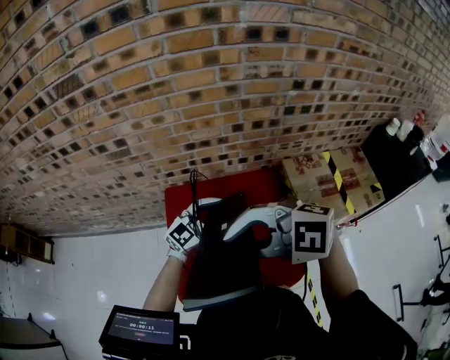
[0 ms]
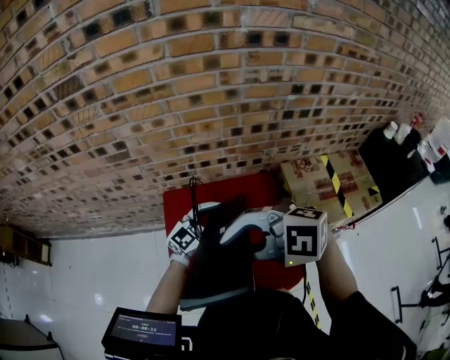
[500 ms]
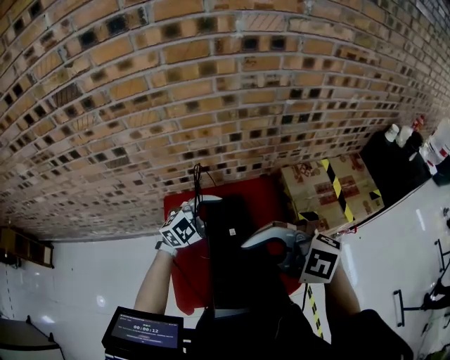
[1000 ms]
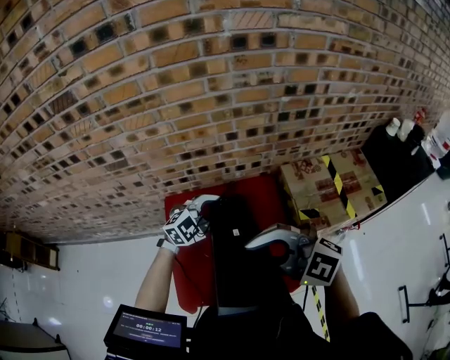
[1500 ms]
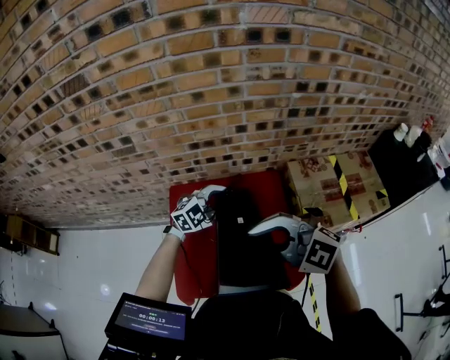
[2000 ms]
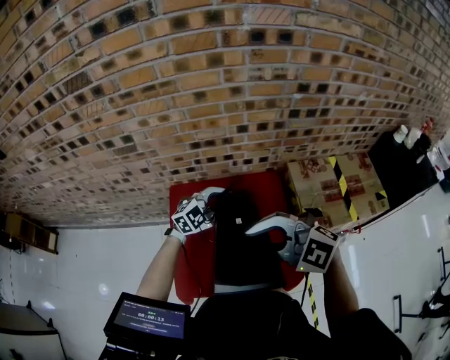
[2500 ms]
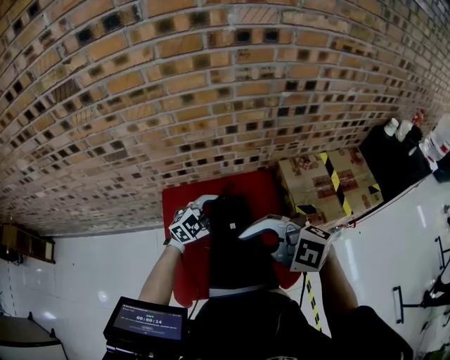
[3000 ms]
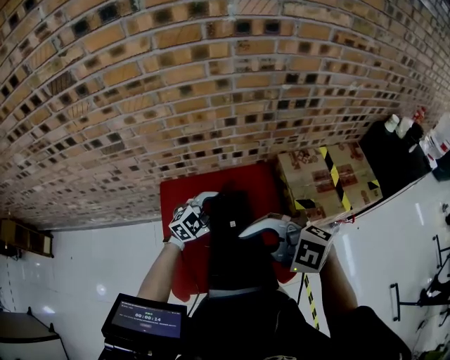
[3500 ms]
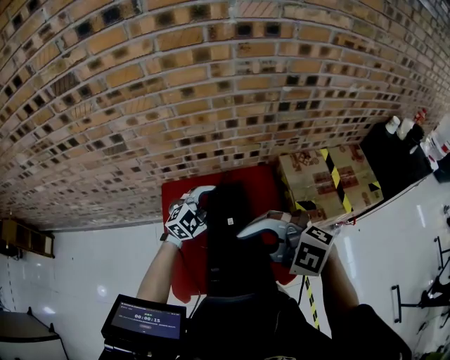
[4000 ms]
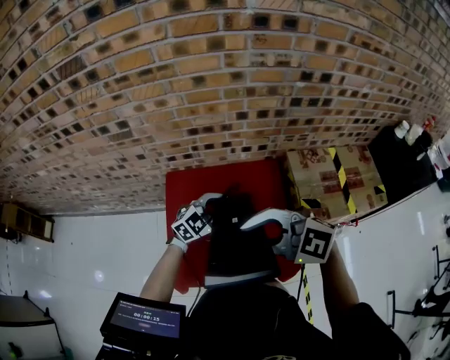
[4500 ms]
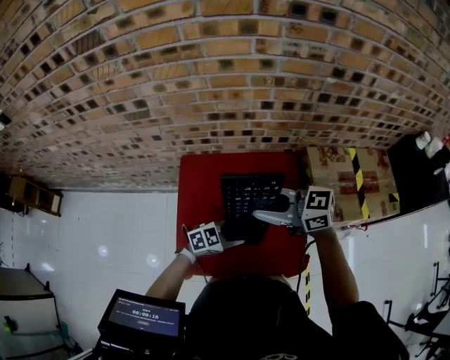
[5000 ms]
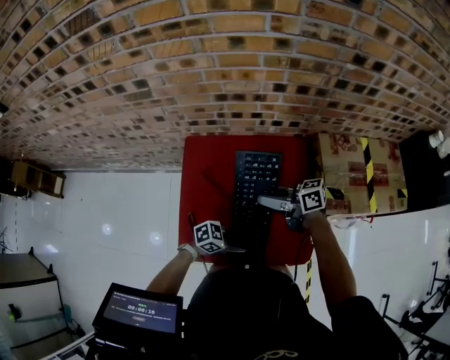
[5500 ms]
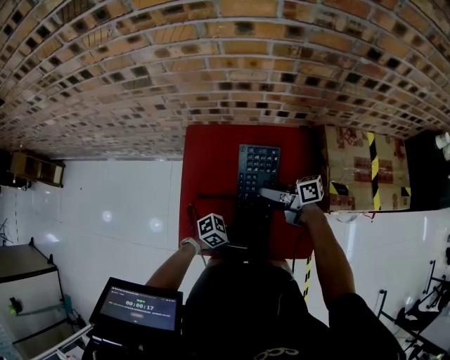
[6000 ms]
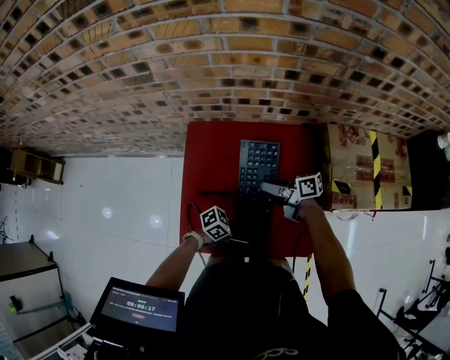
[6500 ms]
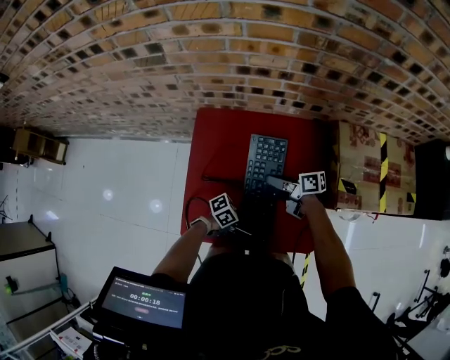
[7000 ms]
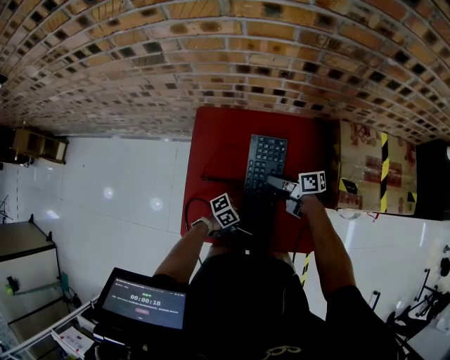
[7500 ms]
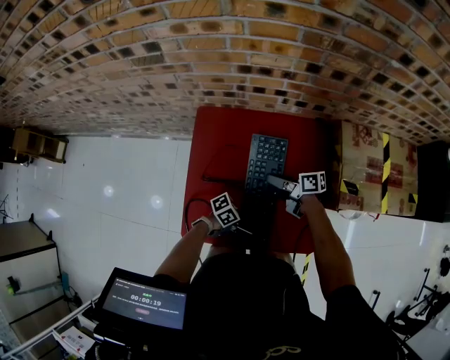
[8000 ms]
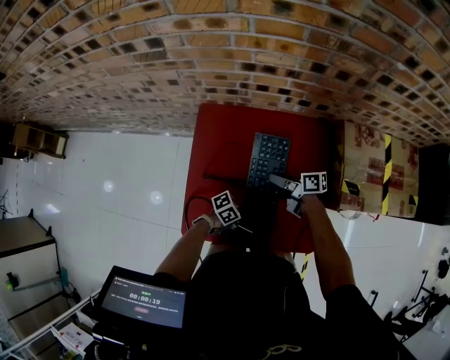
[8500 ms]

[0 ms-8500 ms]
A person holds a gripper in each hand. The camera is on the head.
0 ms to 2000 ms: The left gripper shifts by roughly 5 cm, and turns by approximately 30 degrees; the right gripper changes place by about 10 cm.
2000 ms to 4000 ms: There are only small adjustments of the grippers.
4000 ms to 6500 ms: The left gripper changes place by approximately 35 cm, and swivels about 80 degrees. Meanwhile the right gripper is displaced downward by about 30 cm, and rotates around the line of its fingers by approximately 100 degrees, clockwise from behind.
6500 ms to 8500 ms: The right gripper is displaced downward by some 5 cm.

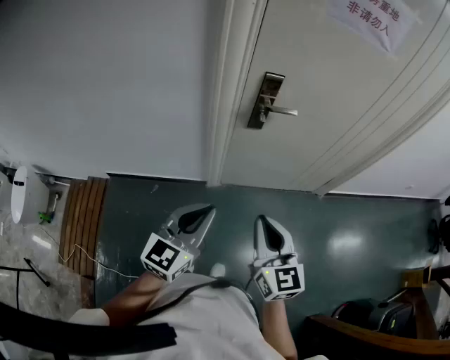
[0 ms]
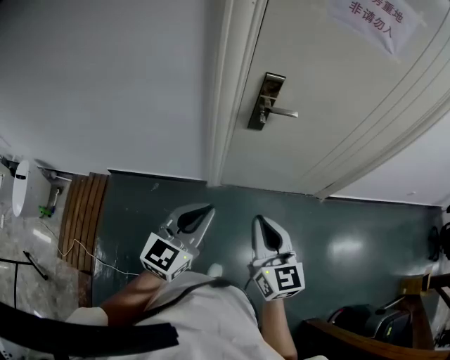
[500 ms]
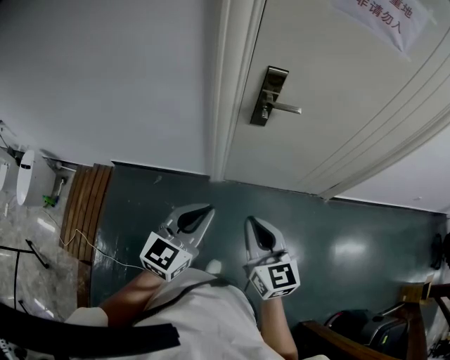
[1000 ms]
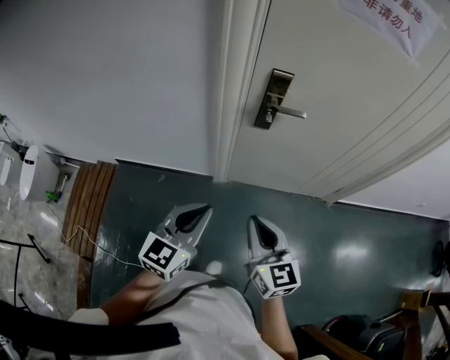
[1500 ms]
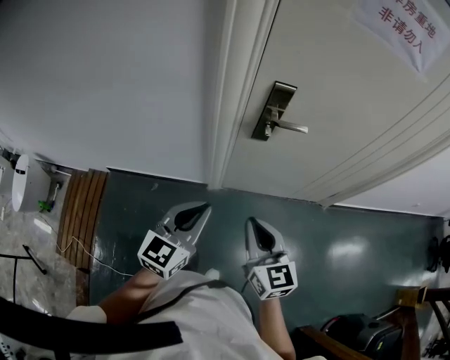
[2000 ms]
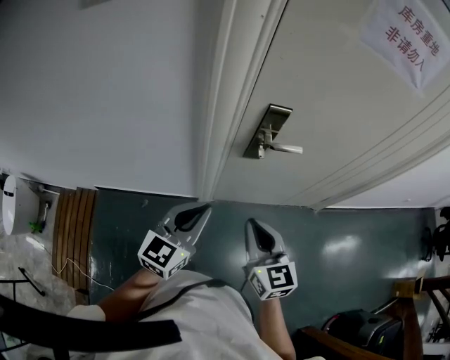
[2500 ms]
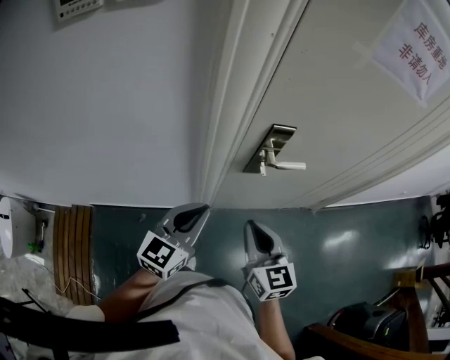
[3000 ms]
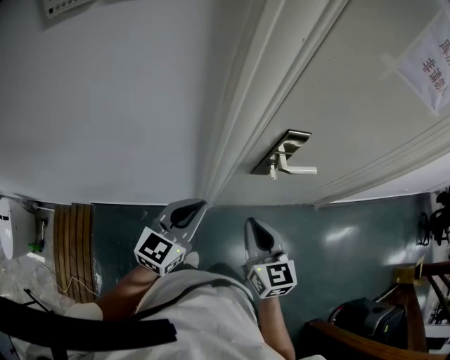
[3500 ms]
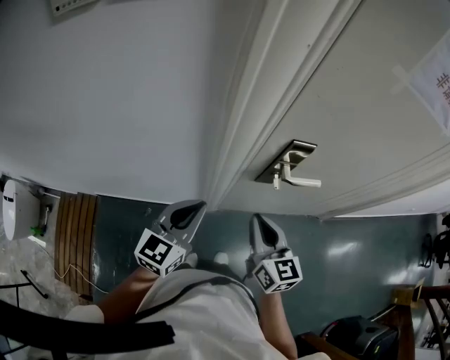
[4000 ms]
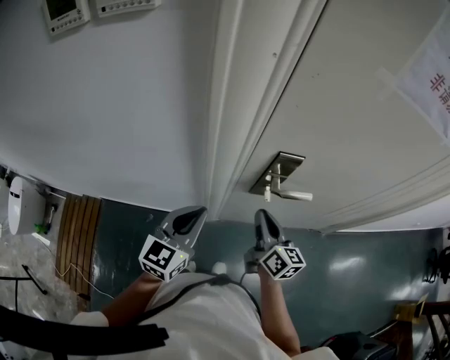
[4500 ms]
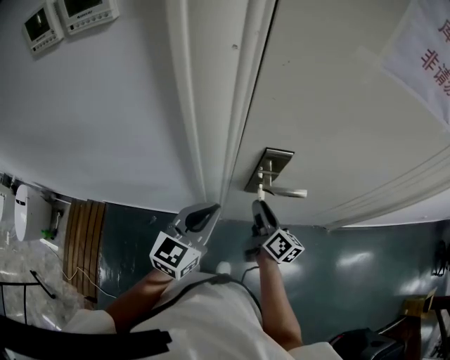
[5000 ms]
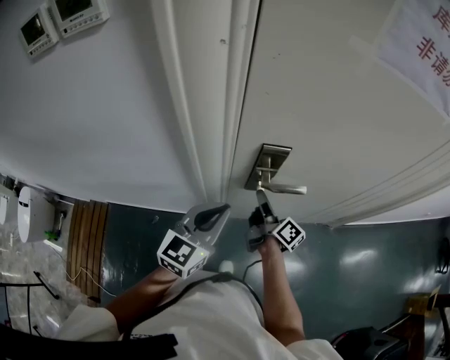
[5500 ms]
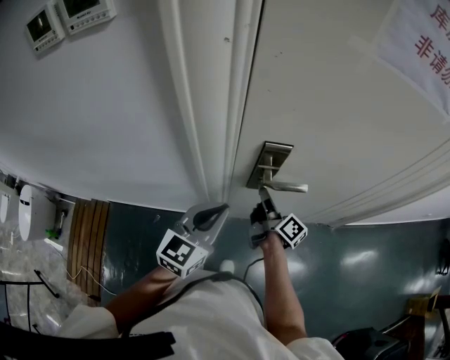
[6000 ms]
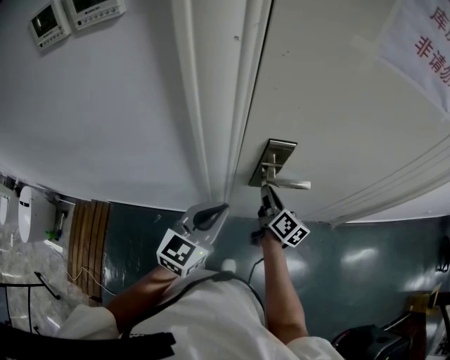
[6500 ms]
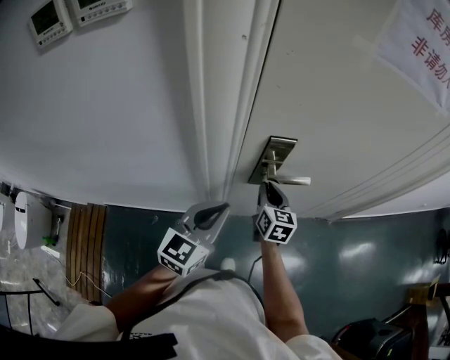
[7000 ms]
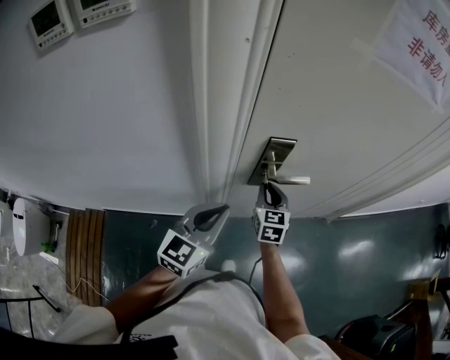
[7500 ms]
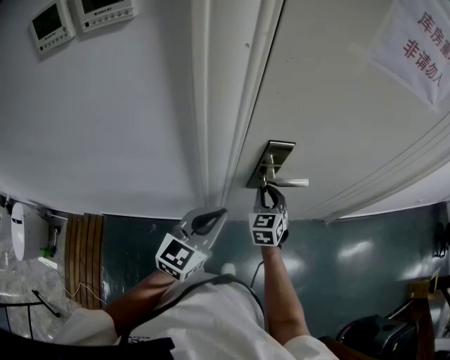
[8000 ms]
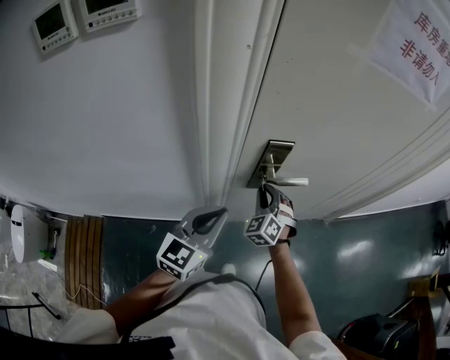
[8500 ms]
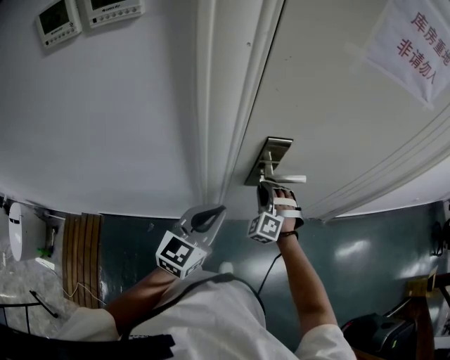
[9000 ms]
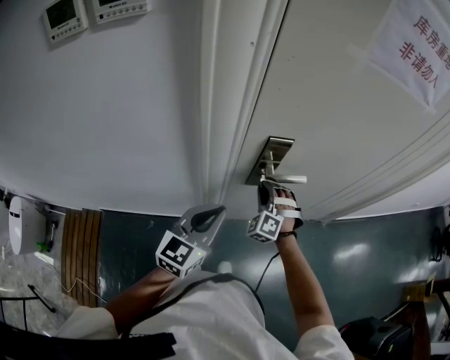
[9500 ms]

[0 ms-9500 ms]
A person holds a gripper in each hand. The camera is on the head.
0 ms to 2000 ms: Both grippers move forward, approximately 10 cm.
2000 ms to 4000 ms: The right gripper travels forward by roughly 20 cm, while the left gripper is displaced forward and to the left by about 20 cm.
4000 ms to 5500 ms: The left gripper heads to the right, covering about 15 cm; the right gripper moves forward, downward and to the right, roughly 20 cm, rolls clockwise, seen from behind, by approximately 60 degrees, and opens.
5500 ms to 7500 ms: The right gripper rotates around the line of its fingers by roughly 70 degrees, counterclockwise from behind, and closes up.
7500 ms to 9500 ms: The right gripper rotates around the line of its fingers by roughly 70 degrees, counterclockwise from behind.

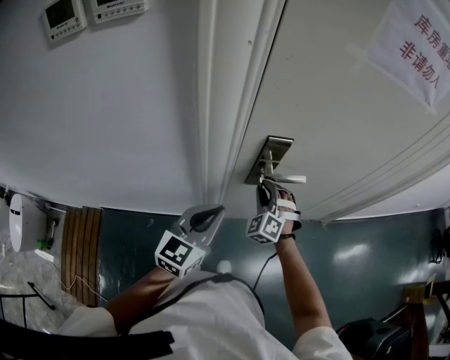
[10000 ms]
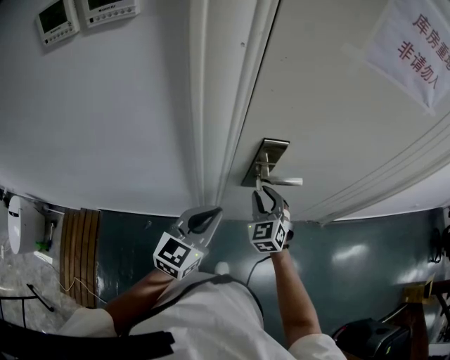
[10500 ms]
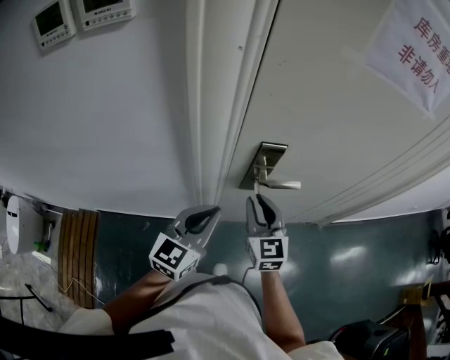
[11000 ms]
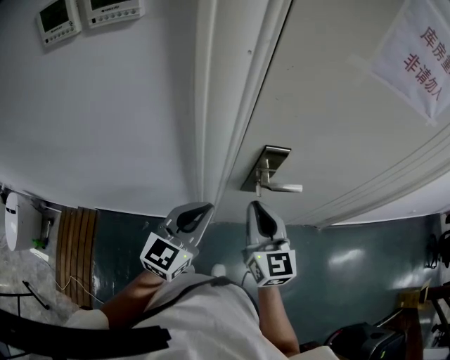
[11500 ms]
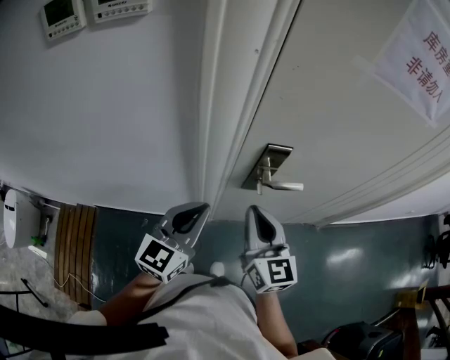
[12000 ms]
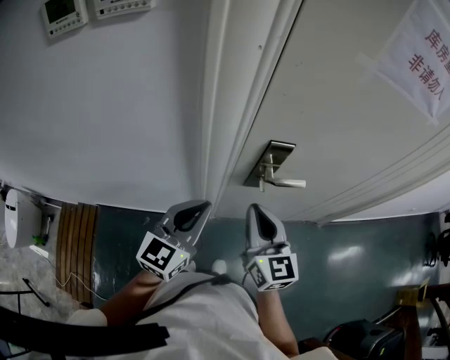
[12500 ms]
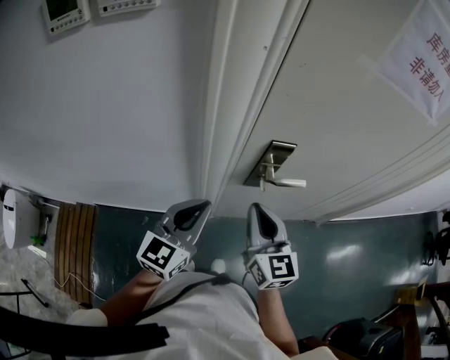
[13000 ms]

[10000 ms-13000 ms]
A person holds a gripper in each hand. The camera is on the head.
10000 ms to 11500 ms: The right gripper moves upward and backward, some 15 cm, and twists about 60 degrees clockwise, seen from behind.
11500 ms to 13000 ms: The grippers stay close to where they were, moving slightly.

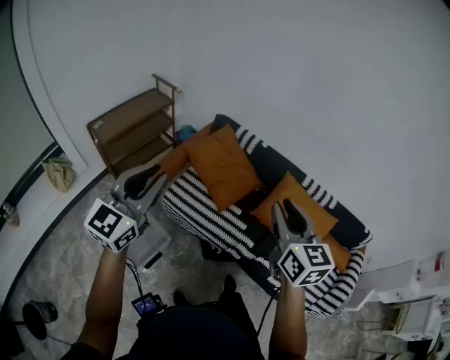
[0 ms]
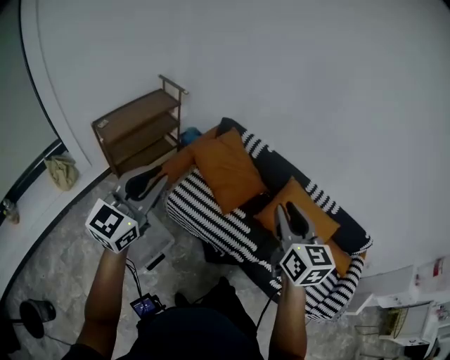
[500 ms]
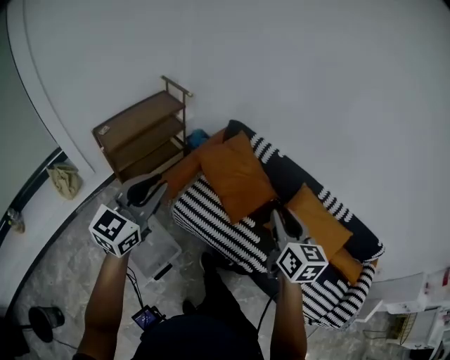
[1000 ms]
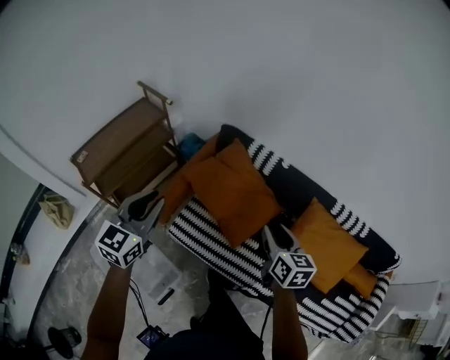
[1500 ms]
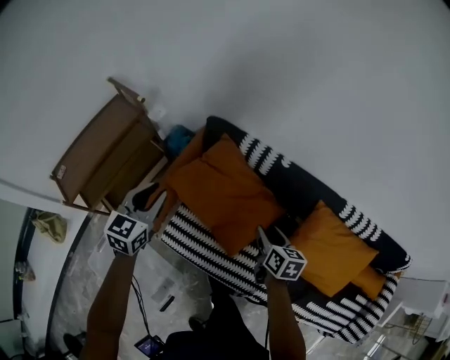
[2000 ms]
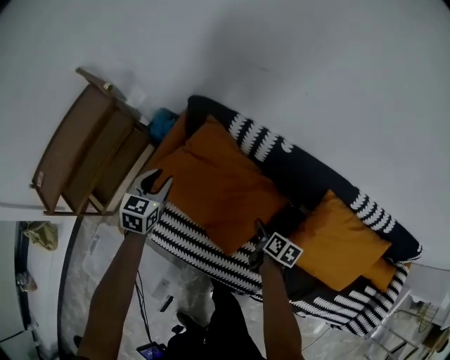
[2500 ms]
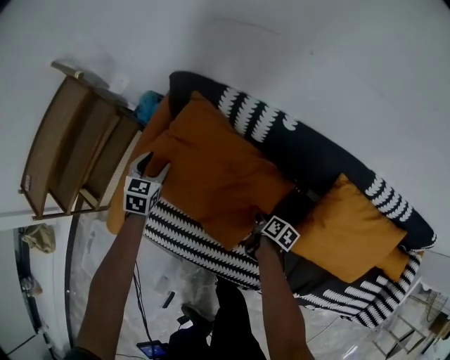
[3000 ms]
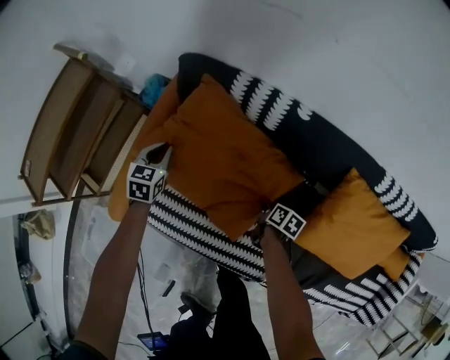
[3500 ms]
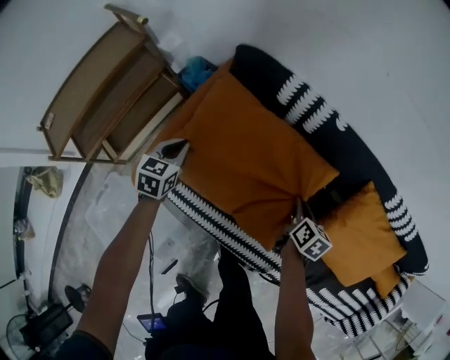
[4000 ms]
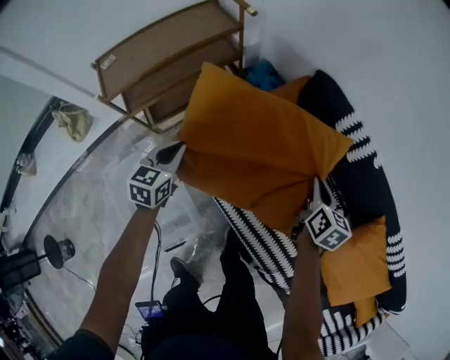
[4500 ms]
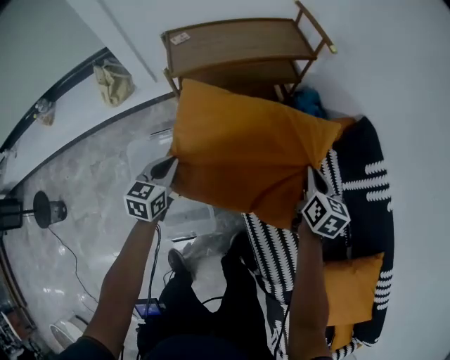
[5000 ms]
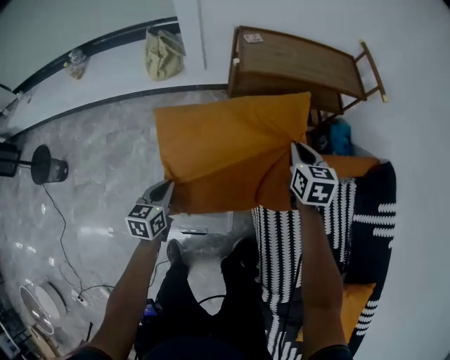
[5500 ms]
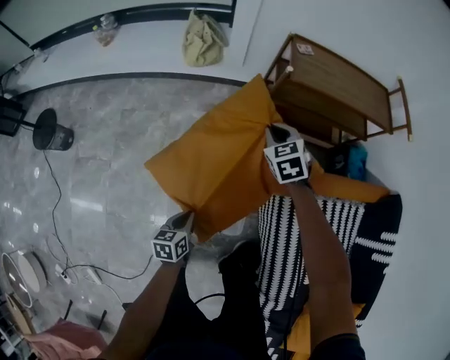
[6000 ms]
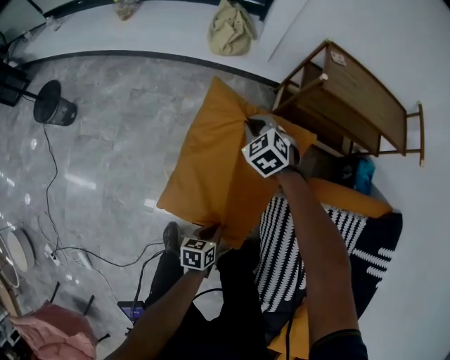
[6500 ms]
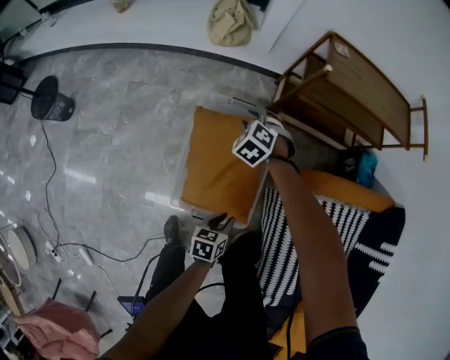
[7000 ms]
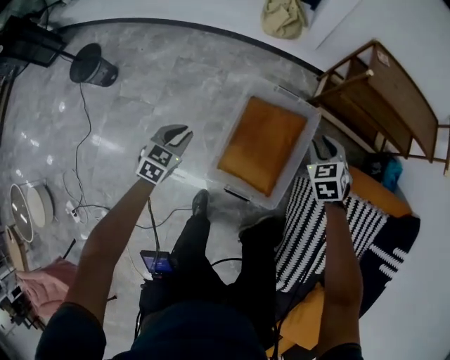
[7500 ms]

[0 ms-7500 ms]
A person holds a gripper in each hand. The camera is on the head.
0 ms to 2000 ms: Both grippers are carried forward, some 50 cm. Both grippers move downward, approximately 35 cm. The left gripper changes its angle by about 30 degrees. Meanwhile the right gripper rotates approximately 40 degrees.
2000 ms to 4000 ms: Both grippers move downward, about 25 cm. The left gripper closes. Meanwhile the right gripper closes up.
4000 ms to 5500 ms: The left gripper changes place by about 70 cm, and turns by roughly 70 degrees. Meanwhile the right gripper changes place by about 70 cm, and rolls counterclockwise, seen from behind, by about 70 degrees.
5500 ms to 7500 ms: The grippers both shift to the left by roughly 30 cm. The left gripper rotates about 20 degrees. Meanwhile the right gripper rotates around the line of its fingers by about 40 degrees, counterclockwise from behind, and opens its fingers.
